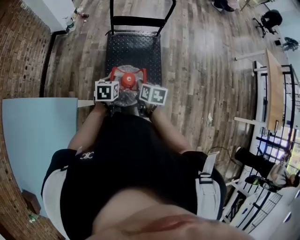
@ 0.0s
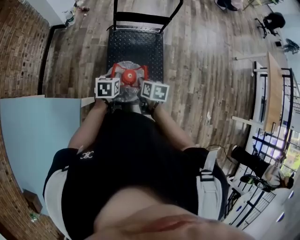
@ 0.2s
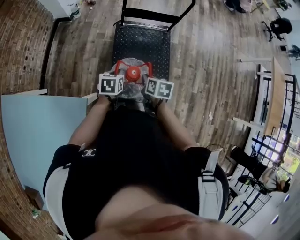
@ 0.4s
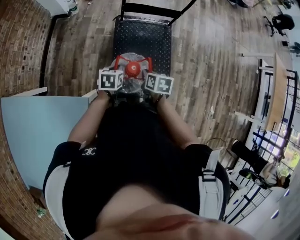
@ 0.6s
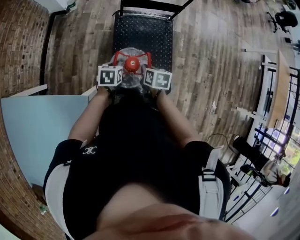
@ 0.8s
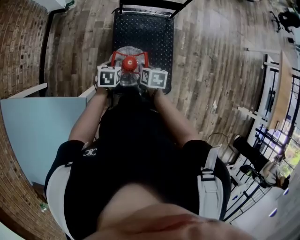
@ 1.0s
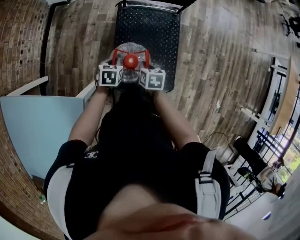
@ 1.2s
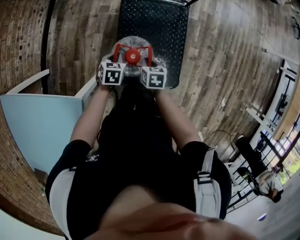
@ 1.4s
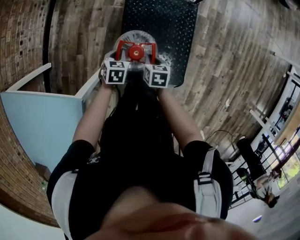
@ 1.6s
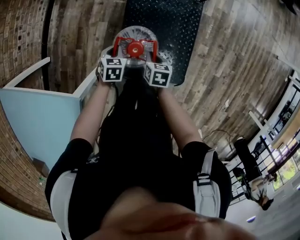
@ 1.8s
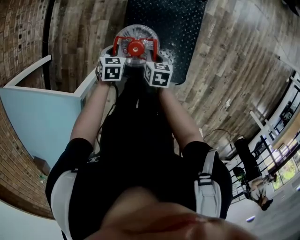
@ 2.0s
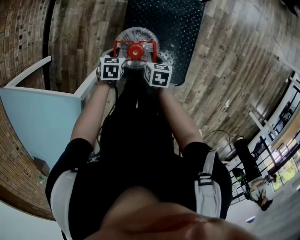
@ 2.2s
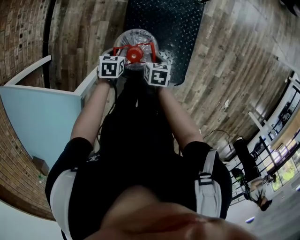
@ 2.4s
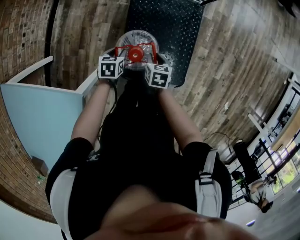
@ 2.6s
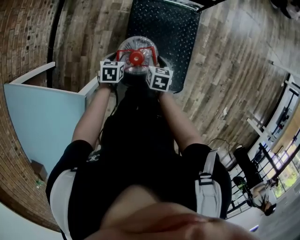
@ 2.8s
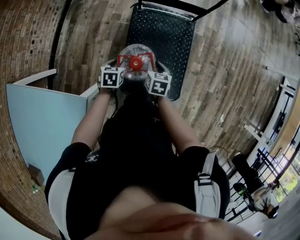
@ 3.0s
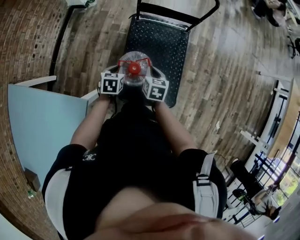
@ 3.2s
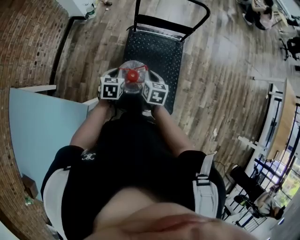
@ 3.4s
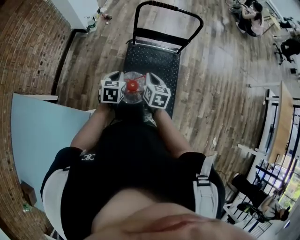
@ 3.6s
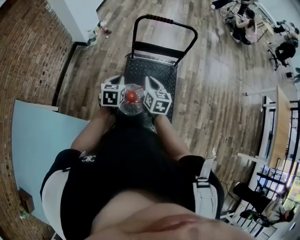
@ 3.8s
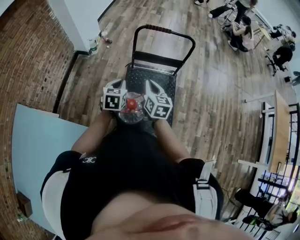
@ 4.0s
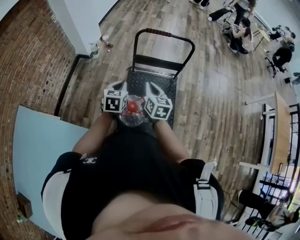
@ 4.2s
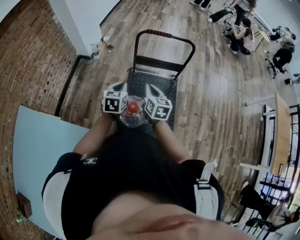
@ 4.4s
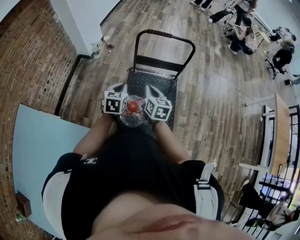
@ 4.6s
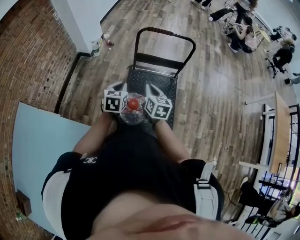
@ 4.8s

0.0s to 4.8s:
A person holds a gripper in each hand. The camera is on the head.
0.0s to 1.6s: The grippers both shift downward and forward by about 20 cm.
1.6s to 3.2s: The two grippers go about 10 cm upward. The left gripper opens, then closes once more.
3.2s to 4.8s: Both grippers move upward, about 15 cm. The right gripper turns by roughly 20 degrees, while the left gripper rotates about 20 degrees.

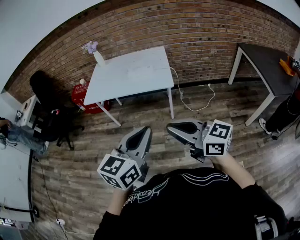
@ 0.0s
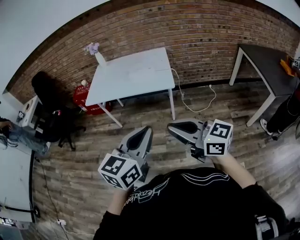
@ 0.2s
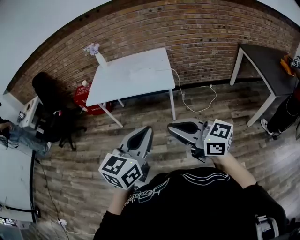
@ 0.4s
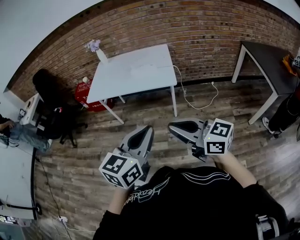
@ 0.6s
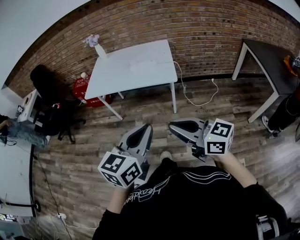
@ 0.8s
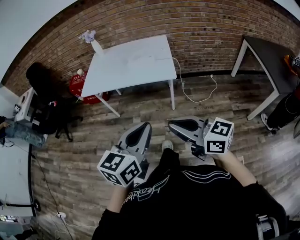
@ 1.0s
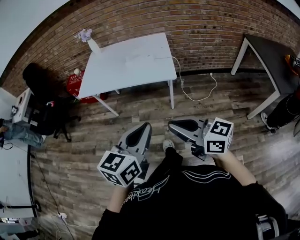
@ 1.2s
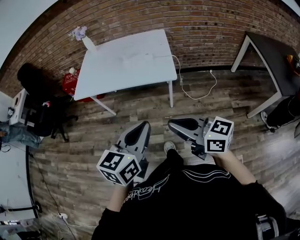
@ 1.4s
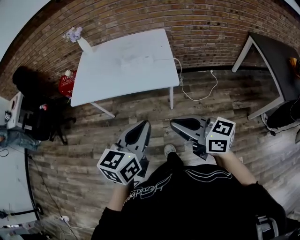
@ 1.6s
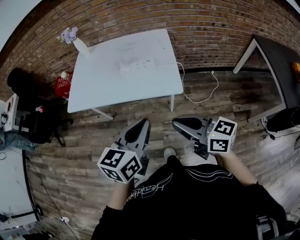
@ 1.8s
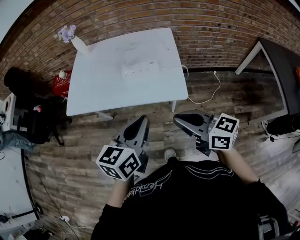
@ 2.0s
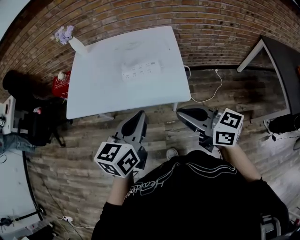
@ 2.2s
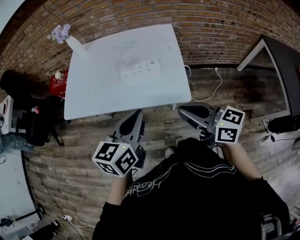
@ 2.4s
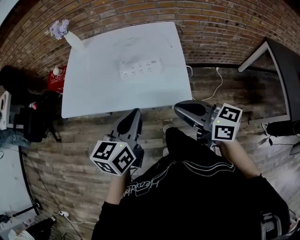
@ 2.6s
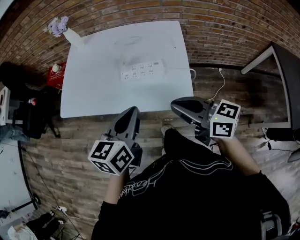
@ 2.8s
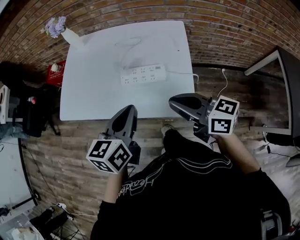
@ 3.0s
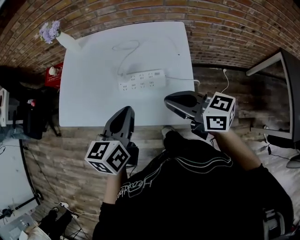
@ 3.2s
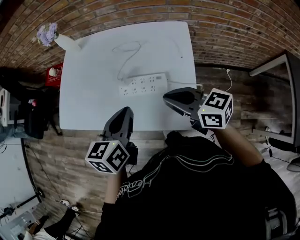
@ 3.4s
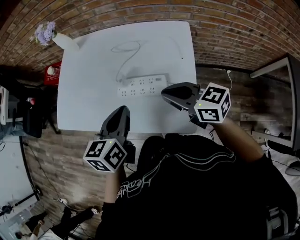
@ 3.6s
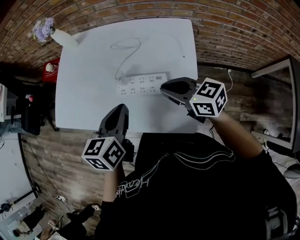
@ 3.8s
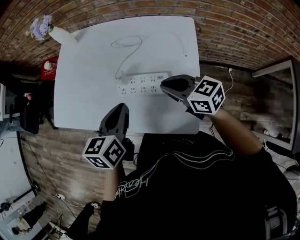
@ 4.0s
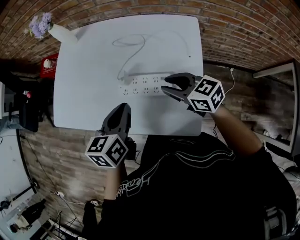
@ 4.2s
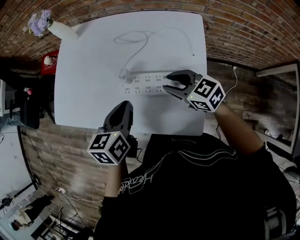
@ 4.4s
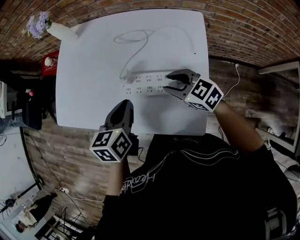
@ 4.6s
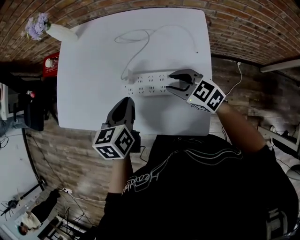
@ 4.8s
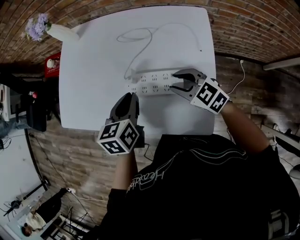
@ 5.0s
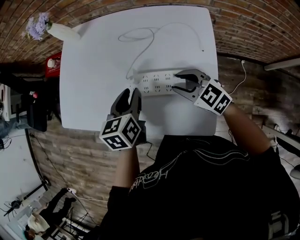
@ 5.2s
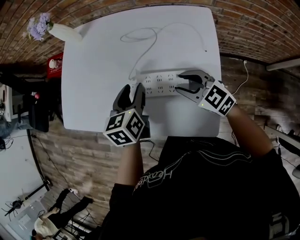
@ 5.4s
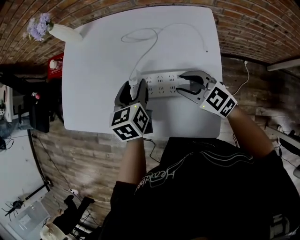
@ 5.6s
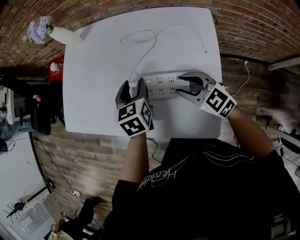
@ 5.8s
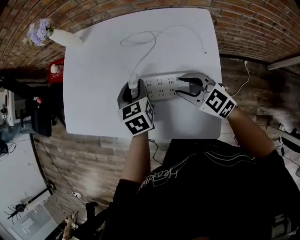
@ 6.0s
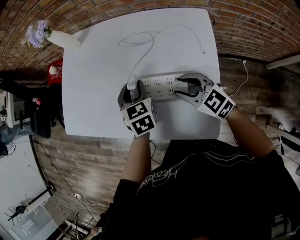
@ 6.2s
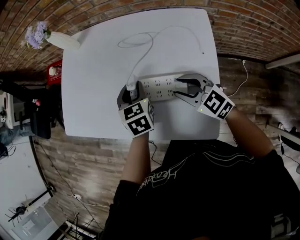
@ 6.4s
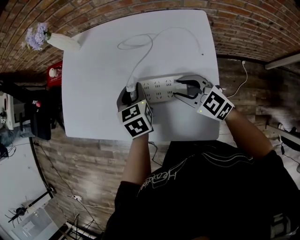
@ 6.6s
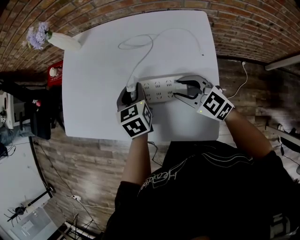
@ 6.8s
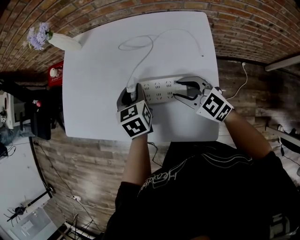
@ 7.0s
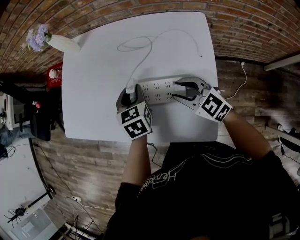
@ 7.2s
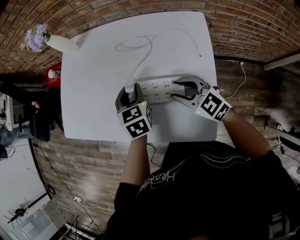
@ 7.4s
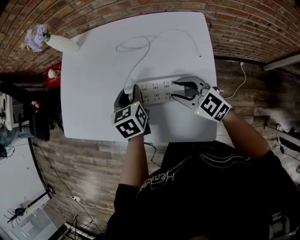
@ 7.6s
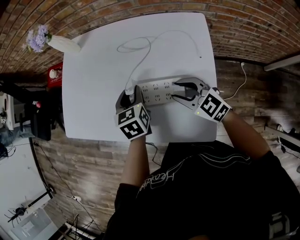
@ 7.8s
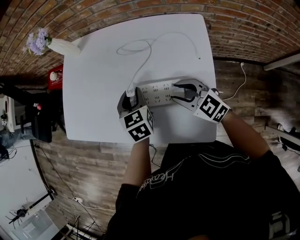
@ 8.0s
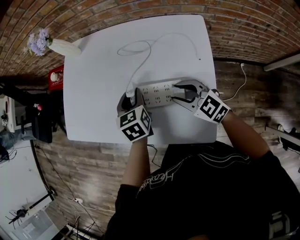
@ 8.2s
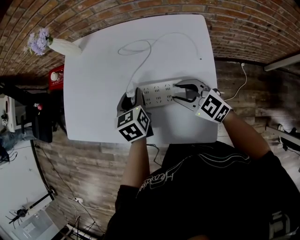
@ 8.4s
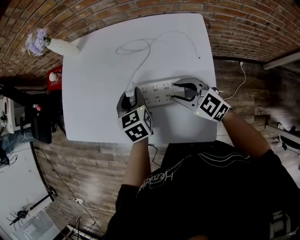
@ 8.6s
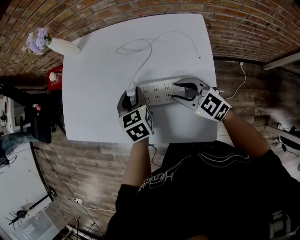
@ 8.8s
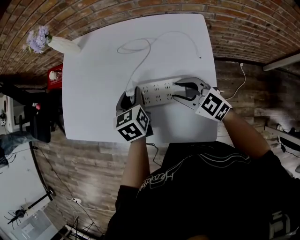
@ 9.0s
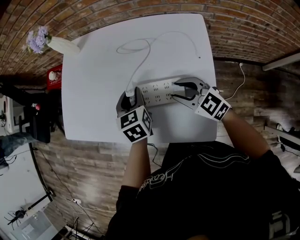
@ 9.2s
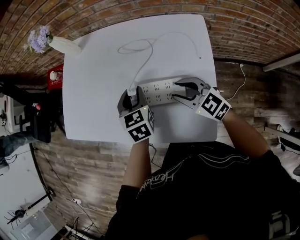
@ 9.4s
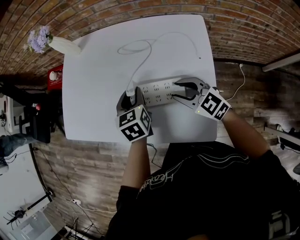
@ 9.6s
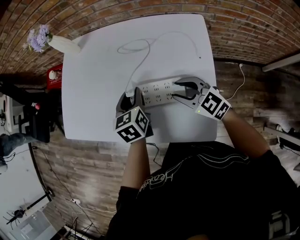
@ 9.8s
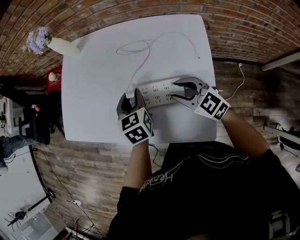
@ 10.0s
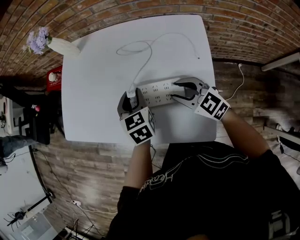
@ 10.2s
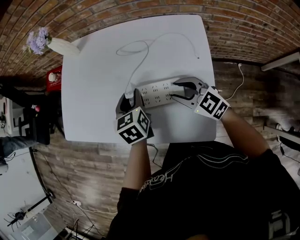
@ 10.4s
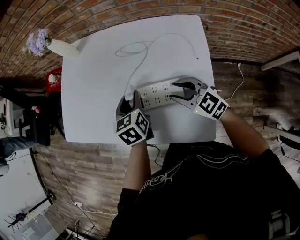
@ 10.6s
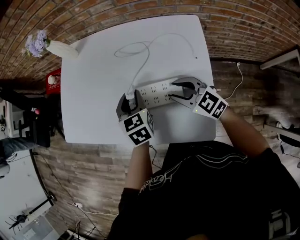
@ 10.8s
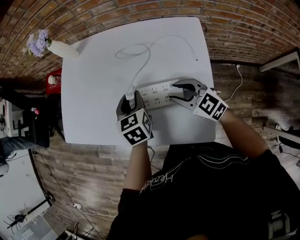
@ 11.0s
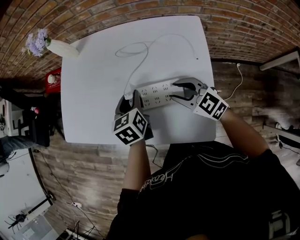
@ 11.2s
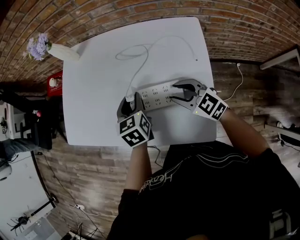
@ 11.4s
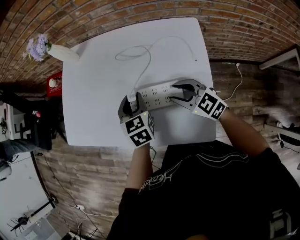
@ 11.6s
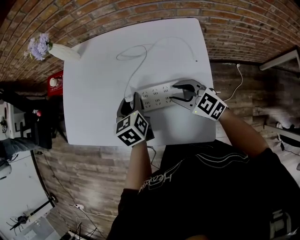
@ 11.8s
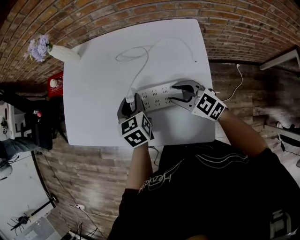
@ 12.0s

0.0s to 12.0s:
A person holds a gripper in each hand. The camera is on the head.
0.0s to 1.6s: The two grippers go about 20 cm forward and downward.
1.6s to 3.0s: The grippers both shift forward by approximately 35 cm.
3.0s to 4.4s: Both grippers move forward and downward, approximately 20 cm. The right gripper swivels about 30 degrees, and opens.
4.4s to 6.0s: The left gripper goes approximately 15 cm forward and downward, swivels approximately 20 degrees, and opens its fingers.
6.0s to 12.0s: The grippers make only small movements.

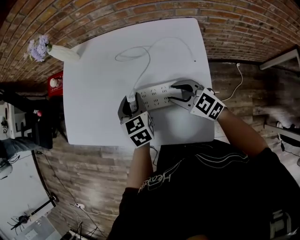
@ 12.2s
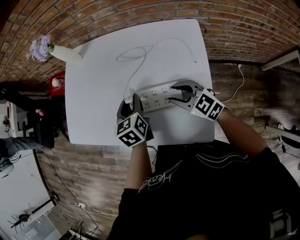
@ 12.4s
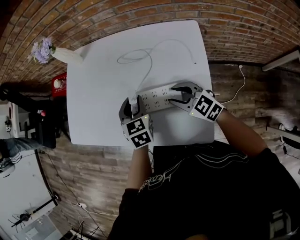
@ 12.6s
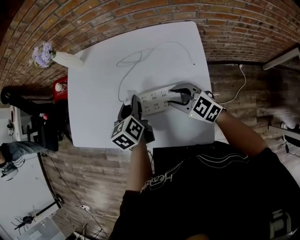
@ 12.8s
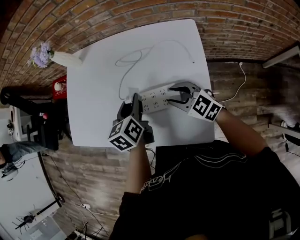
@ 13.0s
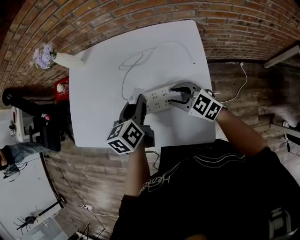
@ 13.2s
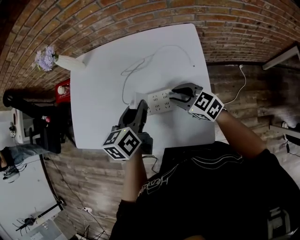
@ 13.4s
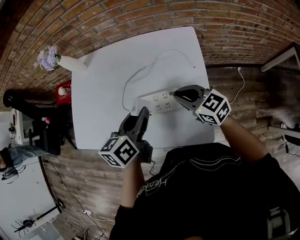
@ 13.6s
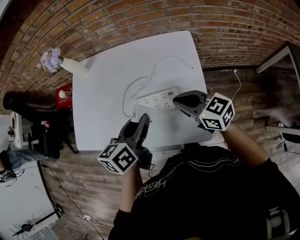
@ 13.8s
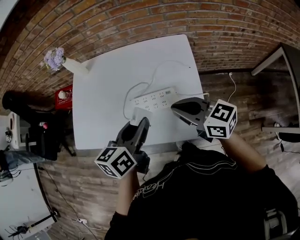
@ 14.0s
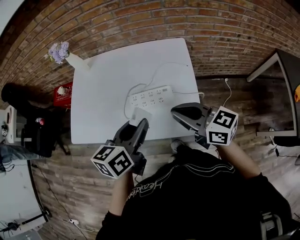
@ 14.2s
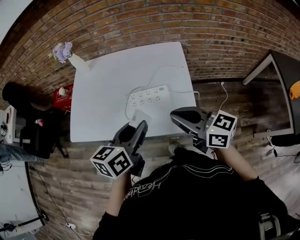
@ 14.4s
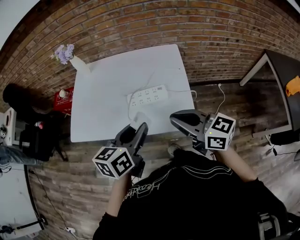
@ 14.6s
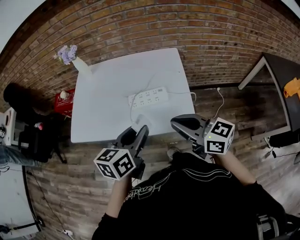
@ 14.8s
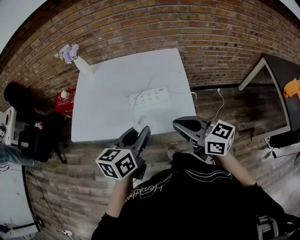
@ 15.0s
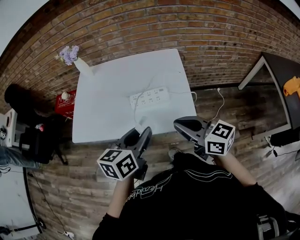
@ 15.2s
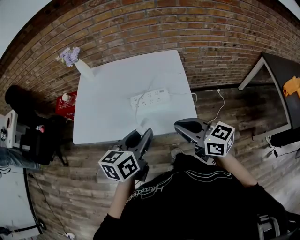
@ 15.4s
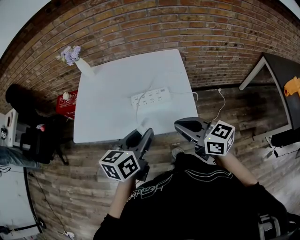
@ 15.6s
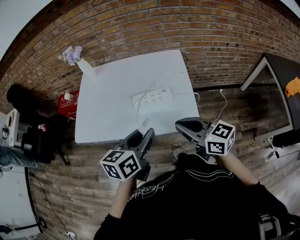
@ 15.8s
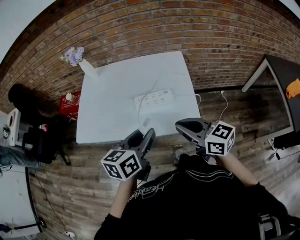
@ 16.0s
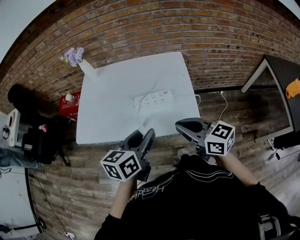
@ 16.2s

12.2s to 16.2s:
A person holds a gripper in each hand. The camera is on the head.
12.2s to 13.6s: The left gripper heads upward and backward, covering roughly 10 cm, and turns by about 40 degrees; the right gripper goes roughly 5 cm upward, and closes its fingers.
13.6s to 14.8s: Both grippers move backward and upward, some 25 cm.
14.8s to 16.2s: The grippers stay close to where they were, moving slightly.

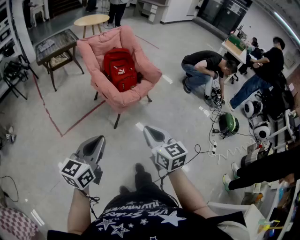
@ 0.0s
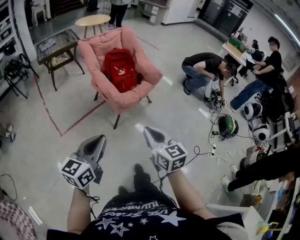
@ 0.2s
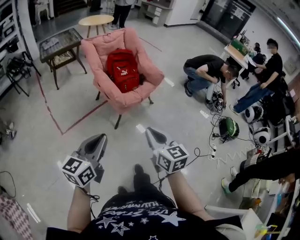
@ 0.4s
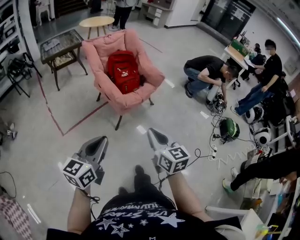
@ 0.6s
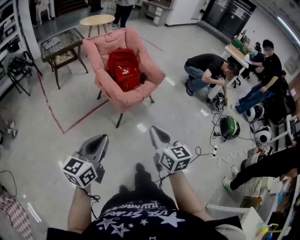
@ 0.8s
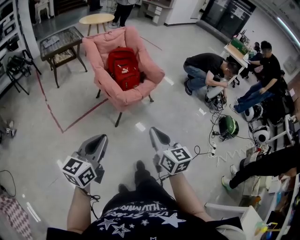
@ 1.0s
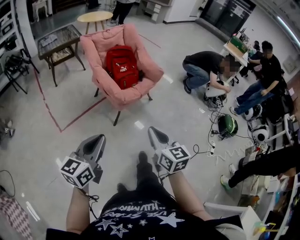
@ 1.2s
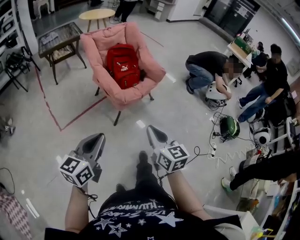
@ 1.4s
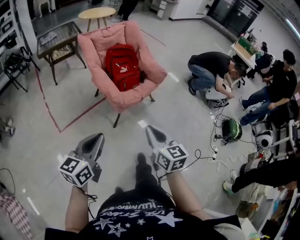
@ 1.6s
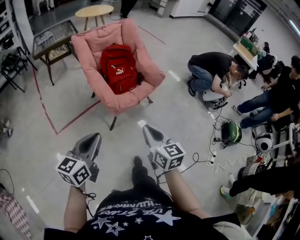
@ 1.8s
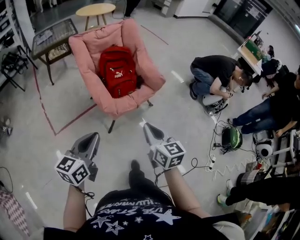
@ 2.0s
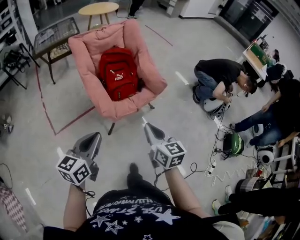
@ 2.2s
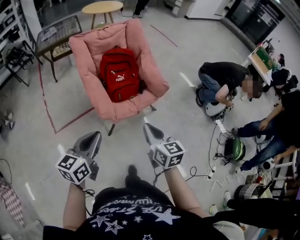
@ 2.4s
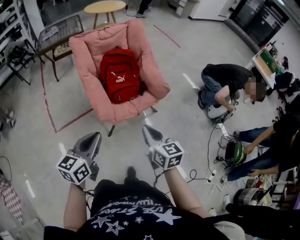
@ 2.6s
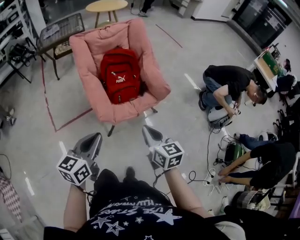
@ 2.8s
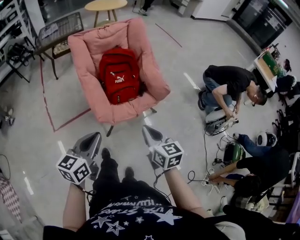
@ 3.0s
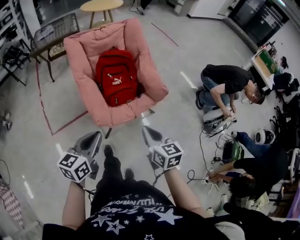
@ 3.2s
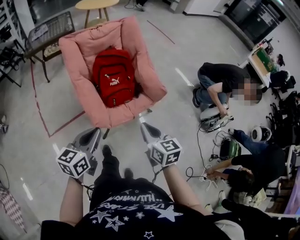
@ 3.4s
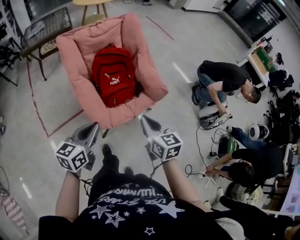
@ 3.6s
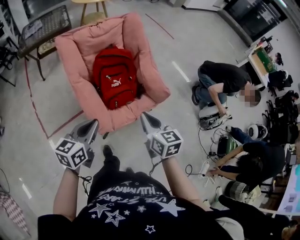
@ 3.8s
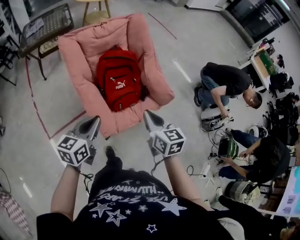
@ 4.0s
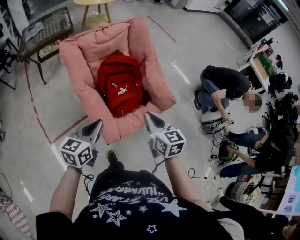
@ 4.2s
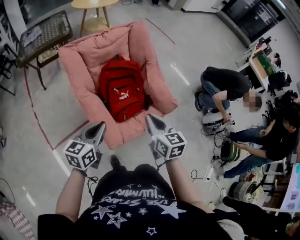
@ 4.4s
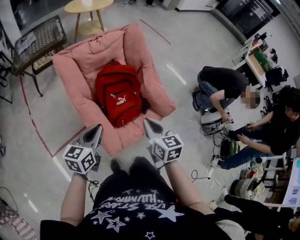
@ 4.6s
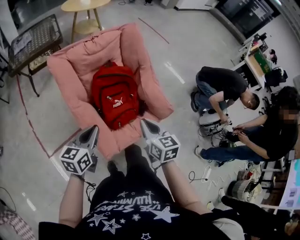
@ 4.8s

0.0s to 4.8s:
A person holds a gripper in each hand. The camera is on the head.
0.0s to 1.6s: The two grippers go some 5 cm forward.
1.6s to 3.2s: The two grippers go approximately 30 cm forward and to the right.
3.2s to 4.8s: The grippers both shift forward and to the left by roughly 30 cm.
